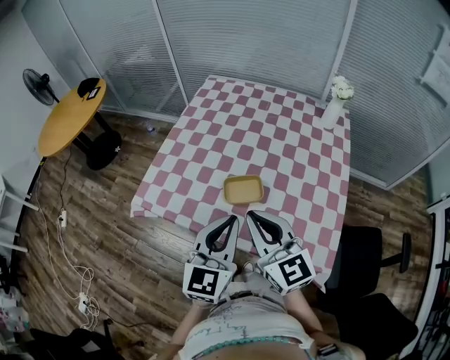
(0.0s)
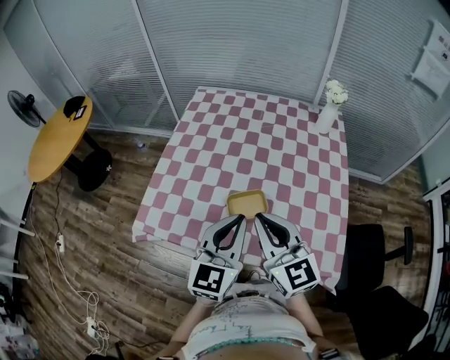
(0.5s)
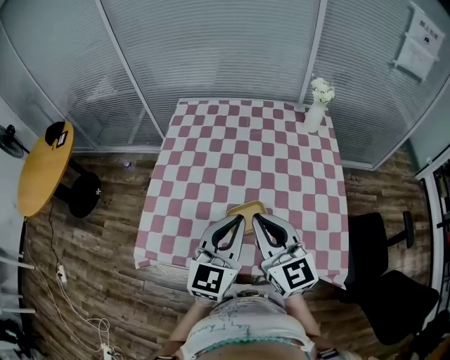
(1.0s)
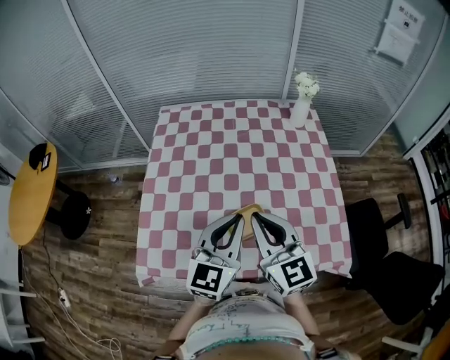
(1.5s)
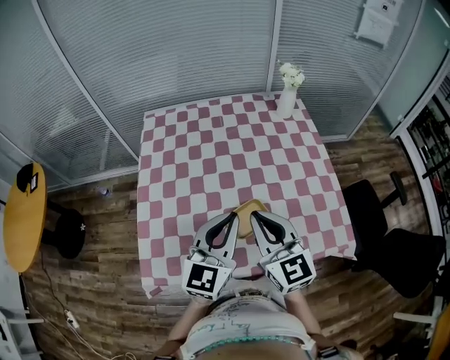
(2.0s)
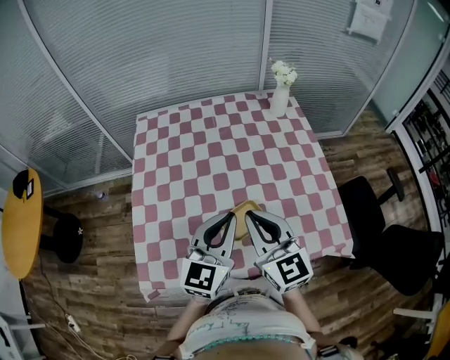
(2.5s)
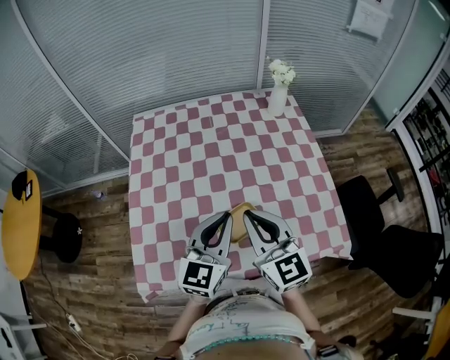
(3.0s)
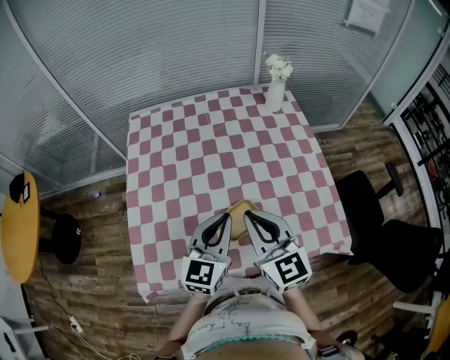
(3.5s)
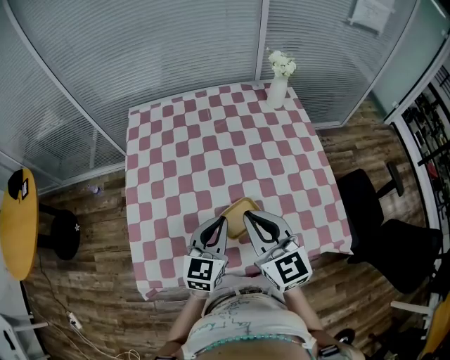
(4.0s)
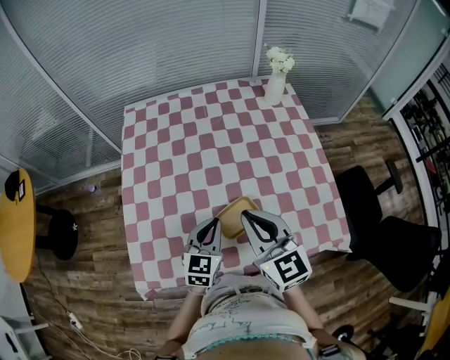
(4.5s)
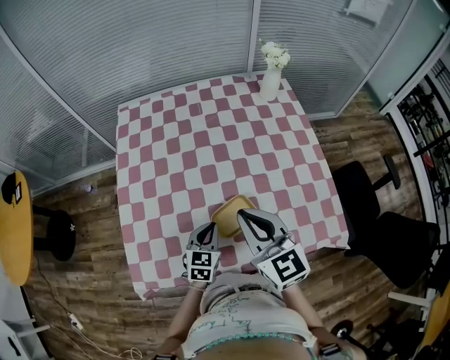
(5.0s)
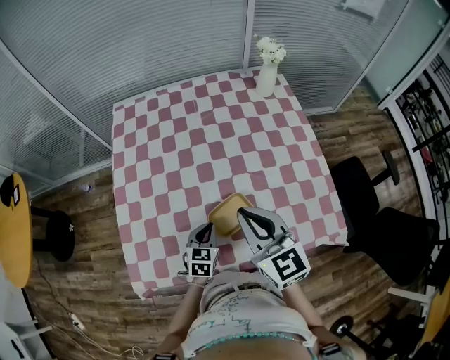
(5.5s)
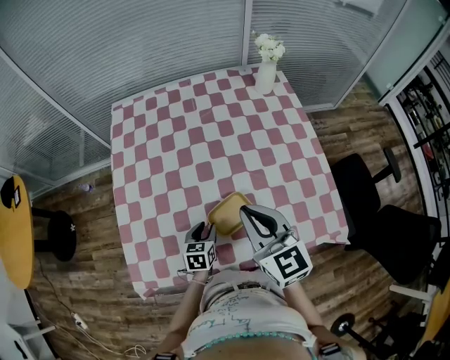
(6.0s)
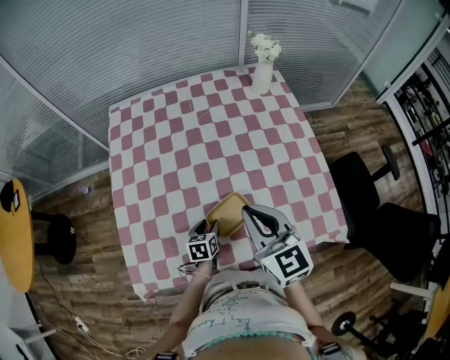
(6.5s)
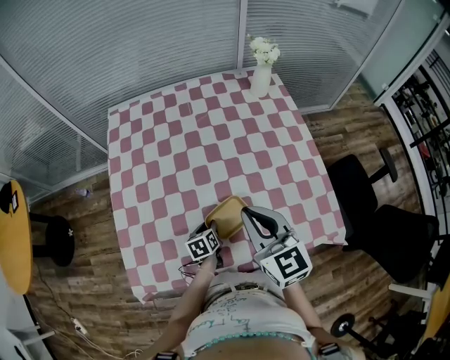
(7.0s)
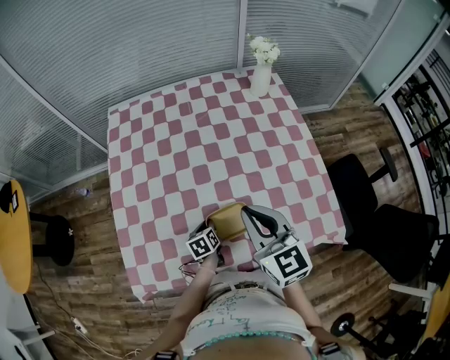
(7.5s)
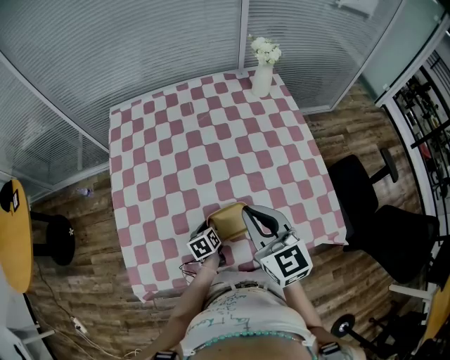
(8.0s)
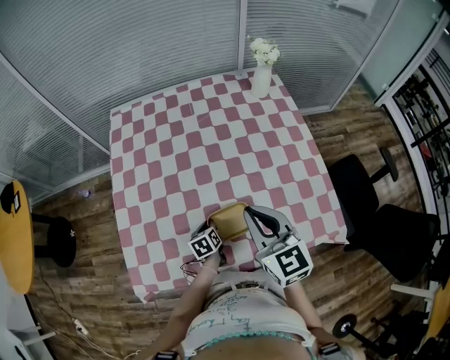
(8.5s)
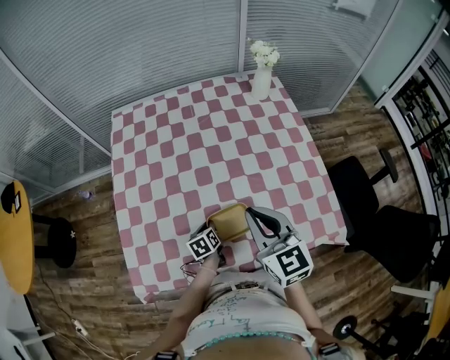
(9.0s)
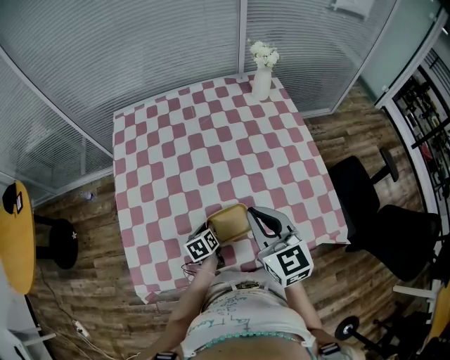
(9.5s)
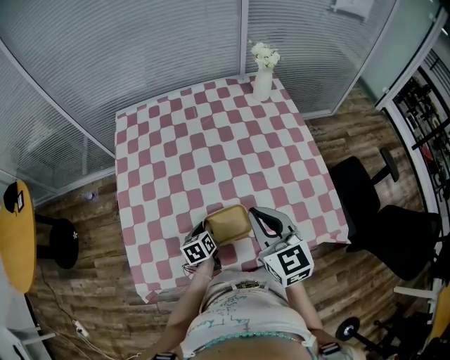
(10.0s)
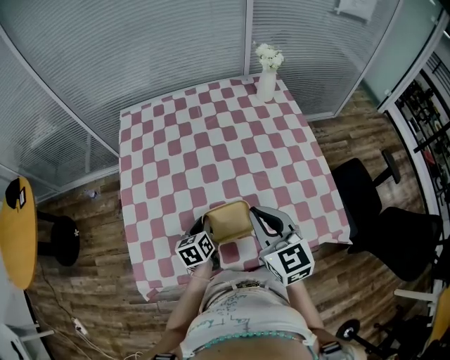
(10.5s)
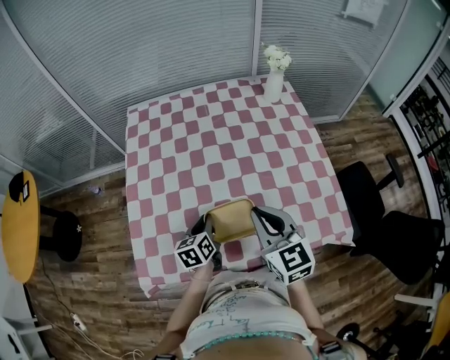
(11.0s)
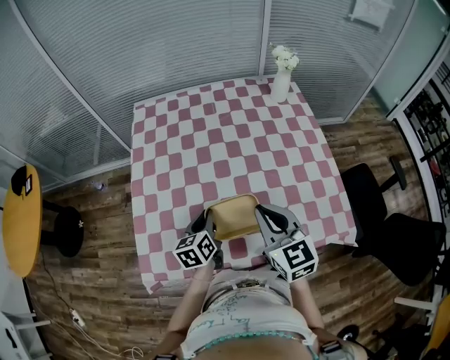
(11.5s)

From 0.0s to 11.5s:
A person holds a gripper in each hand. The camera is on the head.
From 0.0s to 2.0s: The left gripper ends up roughly 15 cm from where it was, and changes its angle by some 30 degrees. Meanwhile the right gripper shifts by about 15 cm, and turns by some 30 degrees.
From 2.0s to 4.0s: The left gripper goes about 10 cm downward.
From 4.0s to 6.0s: The left gripper is displaced downward by some 20 cm, swivels roughly 30 degrees, and opens up.
From 6.0s to 7.5s: The left gripper travels downward by roughly 5 cm, rotates some 20 degrees, and closes up.
From 7.5s to 9.5s: There are only small adjustments of the grippers.
From 9.5s to 11.5s: The left gripper shifts approximately 15 cm upward.

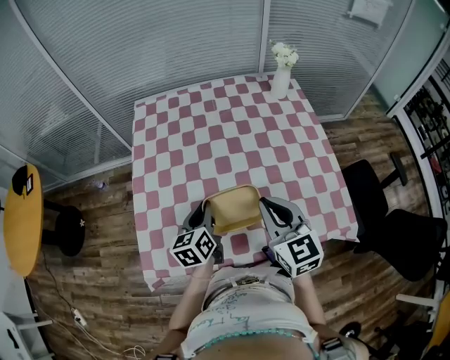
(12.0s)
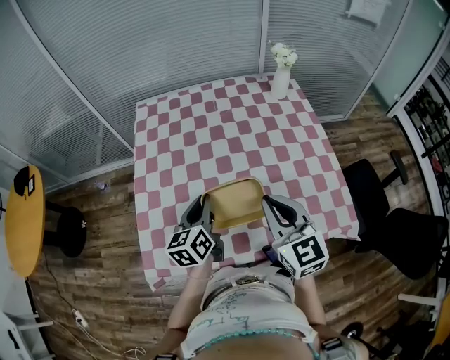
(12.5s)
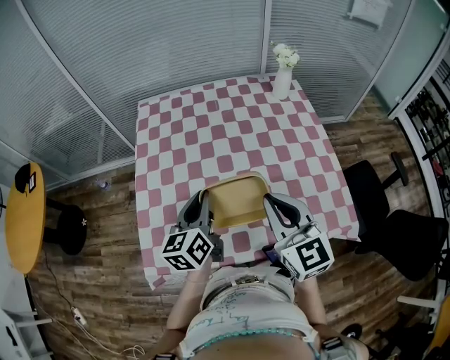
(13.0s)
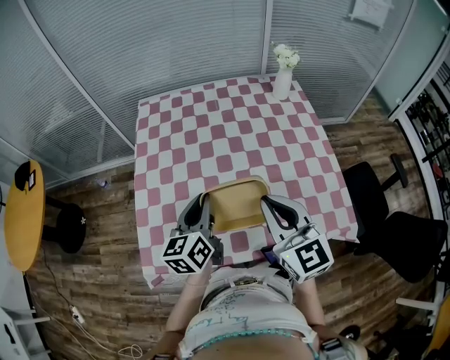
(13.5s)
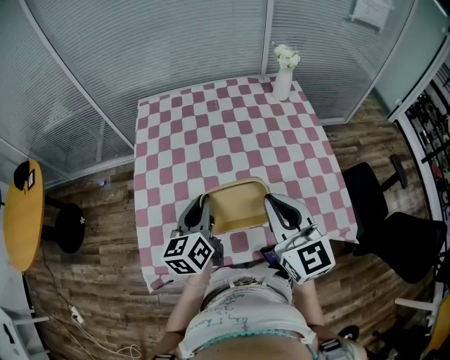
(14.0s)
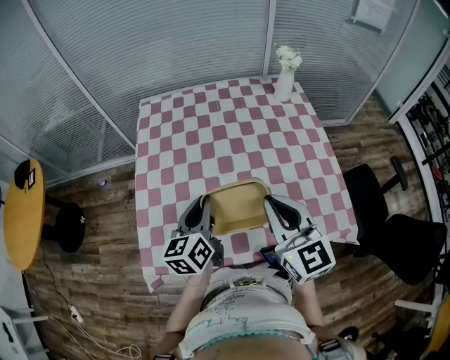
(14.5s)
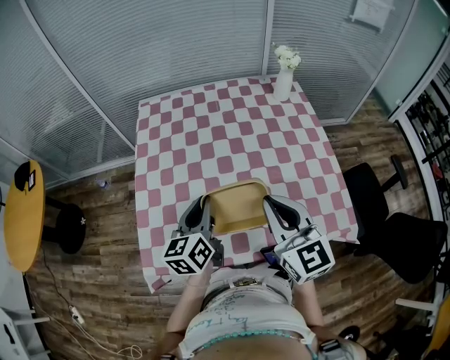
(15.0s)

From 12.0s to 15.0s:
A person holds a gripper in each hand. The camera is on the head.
From 12.0s to 13.5s: The right gripper travels upward by about 5 cm; the left gripper moves upward, roughly 10 cm.
From 13.5s to 15.0s: Both grippers stay about where they are.

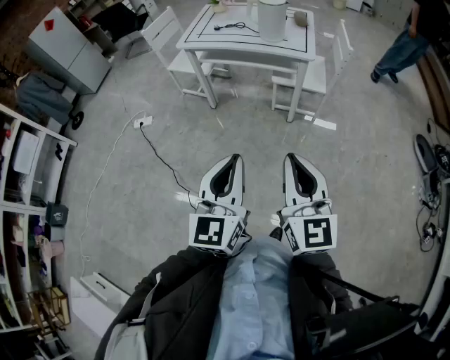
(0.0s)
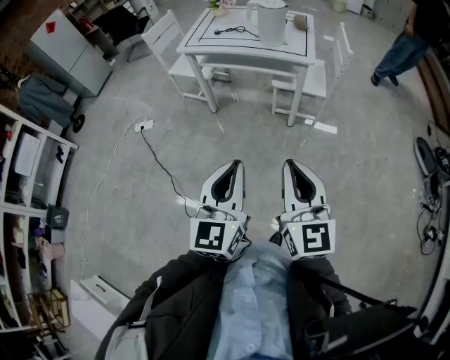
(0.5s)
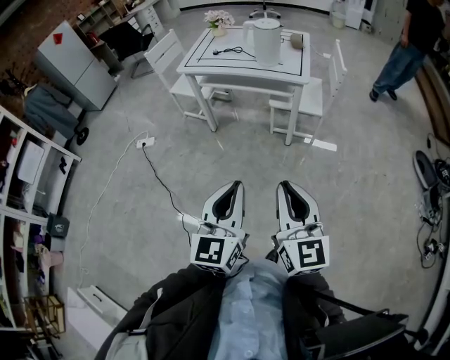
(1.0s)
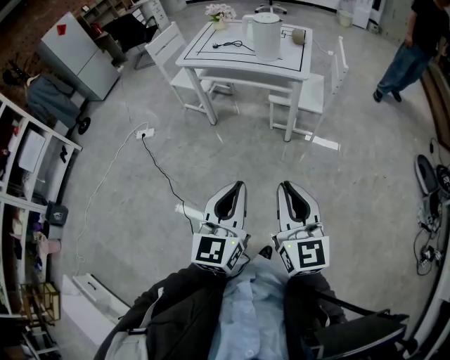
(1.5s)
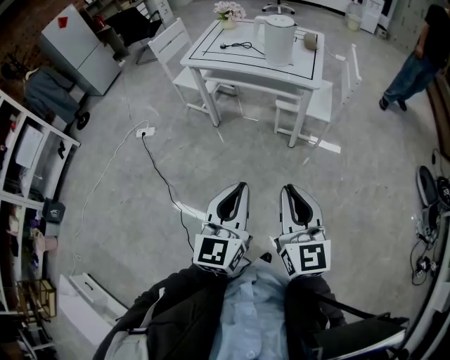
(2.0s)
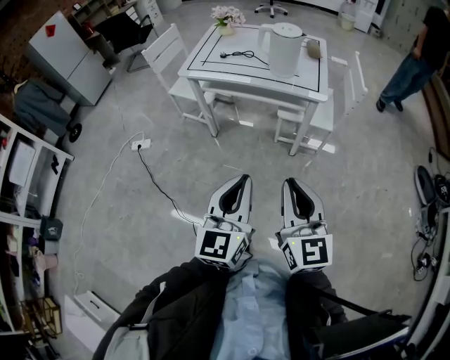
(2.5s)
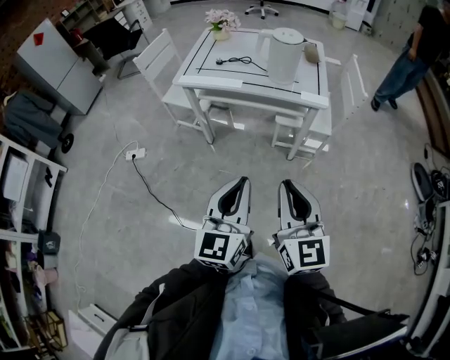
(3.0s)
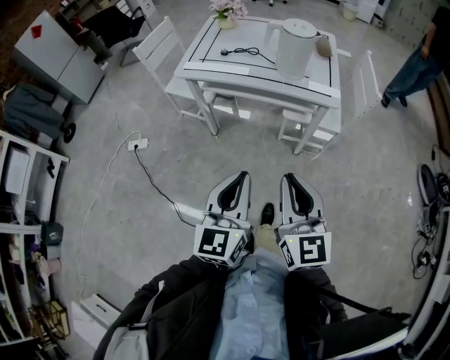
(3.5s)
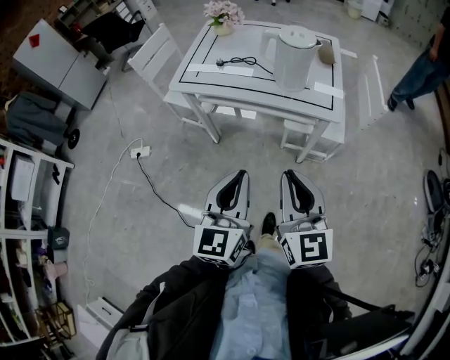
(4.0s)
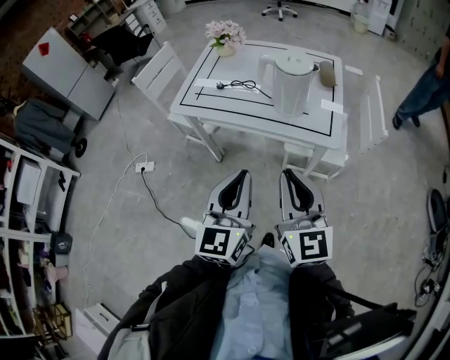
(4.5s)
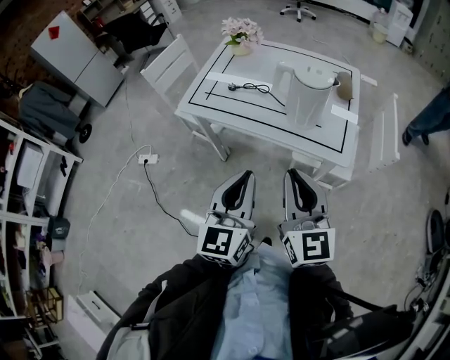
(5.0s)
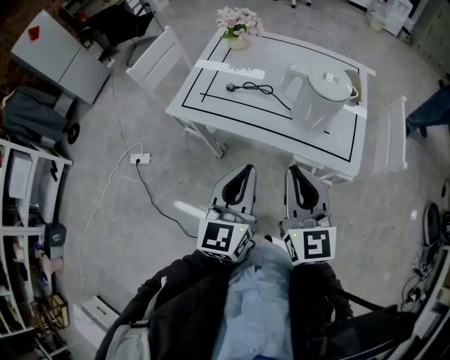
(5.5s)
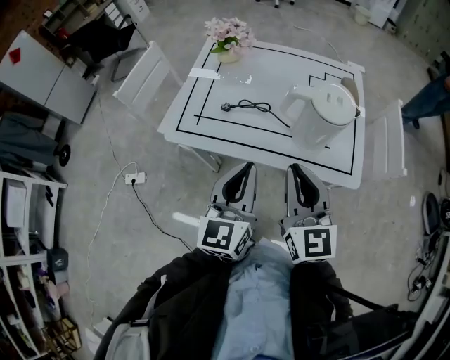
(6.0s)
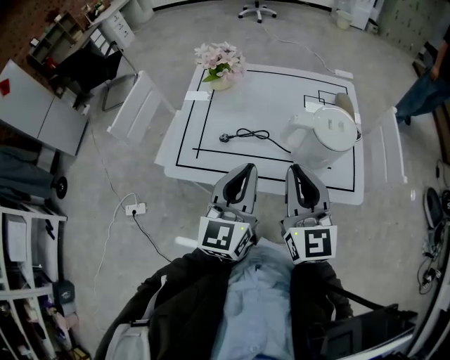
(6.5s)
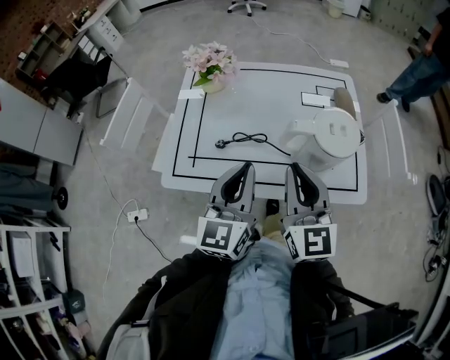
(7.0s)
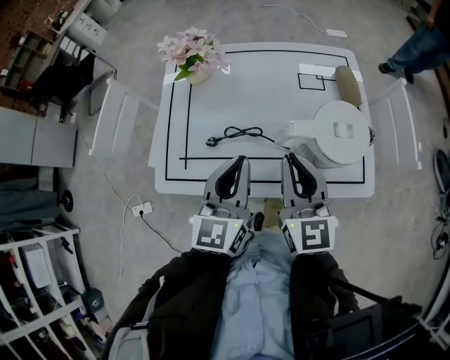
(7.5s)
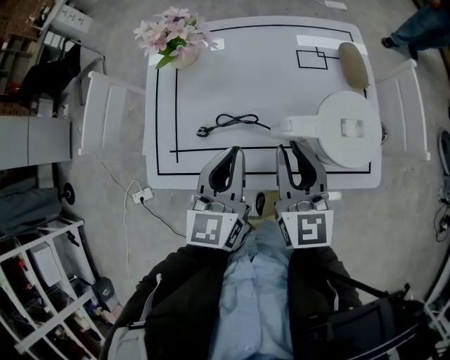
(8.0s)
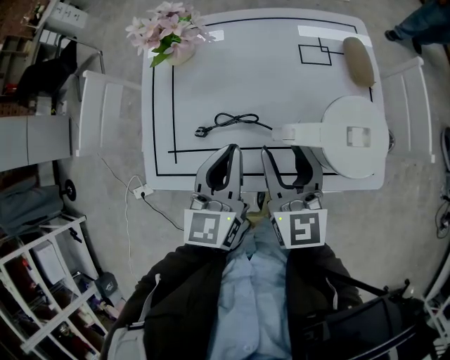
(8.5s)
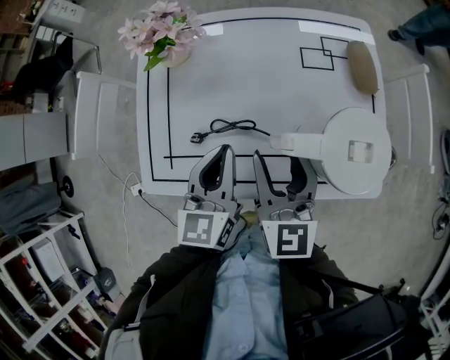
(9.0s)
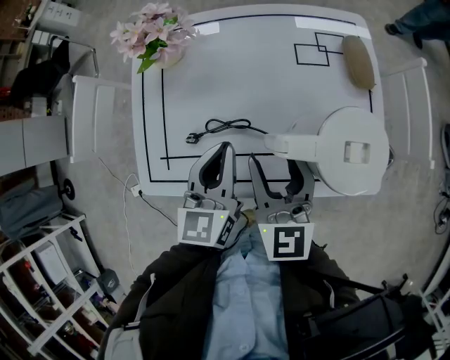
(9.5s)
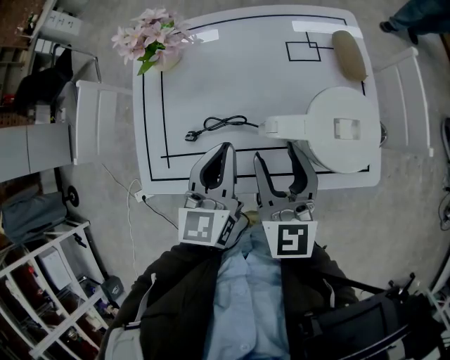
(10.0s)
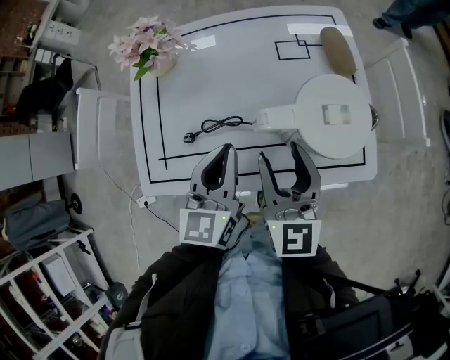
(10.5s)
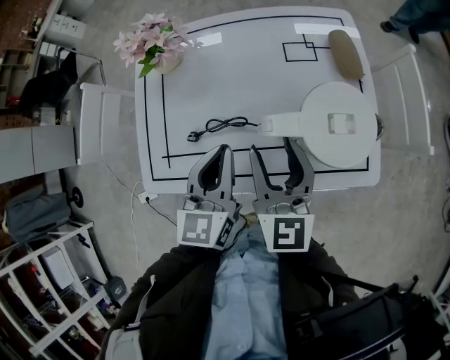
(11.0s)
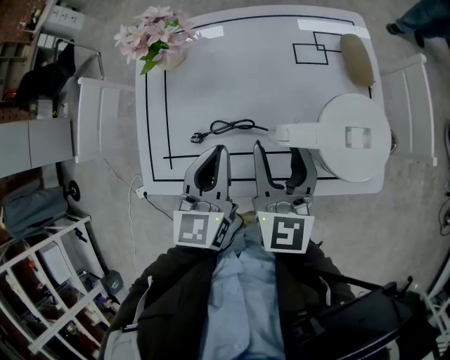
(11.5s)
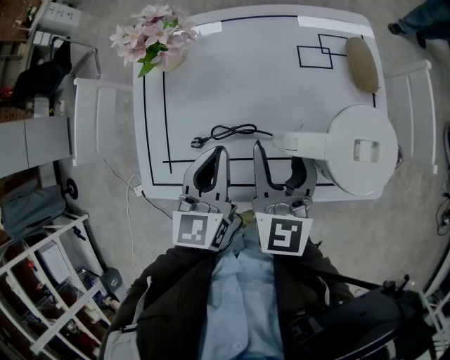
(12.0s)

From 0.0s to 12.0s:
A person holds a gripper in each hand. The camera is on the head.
From 0.0s to 2.0s: The right gripper travels forward by roughly 5 cm. The left gripper heads to the right and forward, covering about 10 cm.
From 2.0s to 4.0s: Both grippers move forward, roughly 30 cm.
From 4.0s to 6.0s: Both grippers travel together forward, some 30 cm.
From 6.0s to 8.0s: The right gripper shifts about 20 cm forward and downward; the left gripper goes approximately 20 cm forward.
From 8.0s to 10.0s: The right gripper opens.
From 10.0s to 12.0s: The right gripper travels forward by roughly 5 cm.
